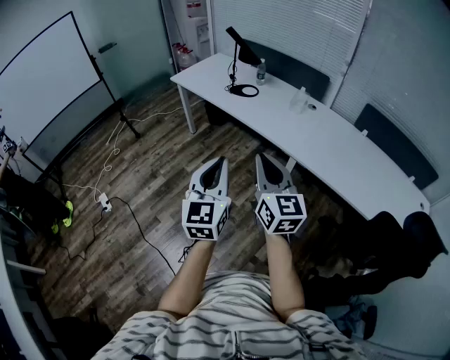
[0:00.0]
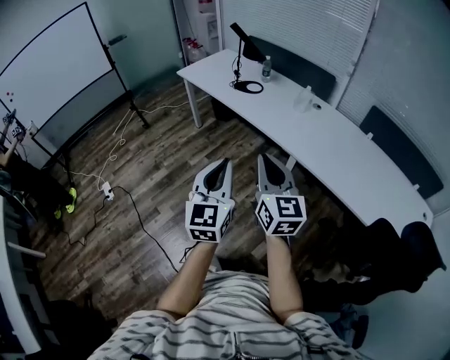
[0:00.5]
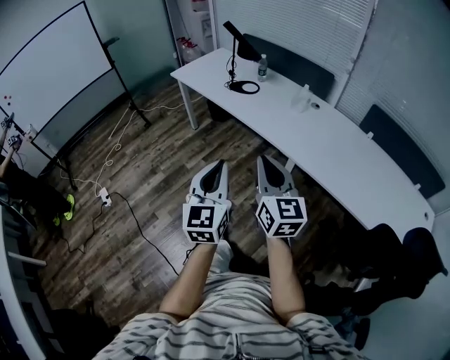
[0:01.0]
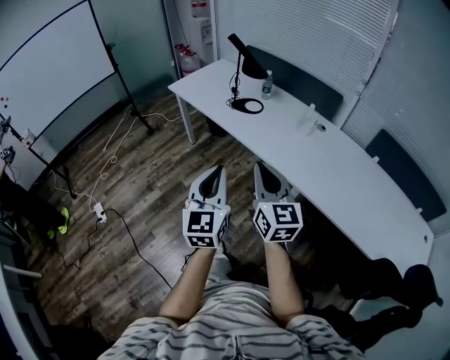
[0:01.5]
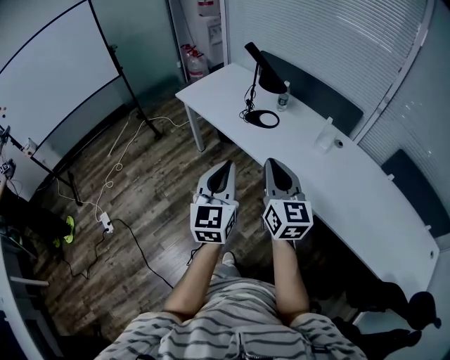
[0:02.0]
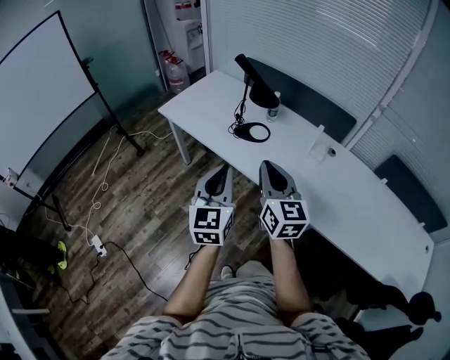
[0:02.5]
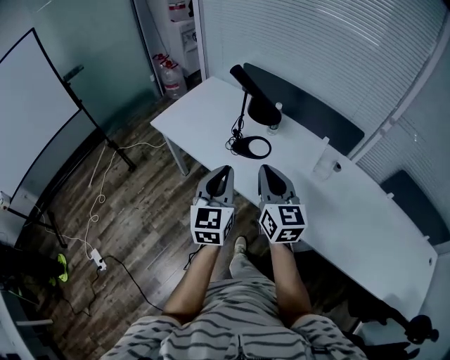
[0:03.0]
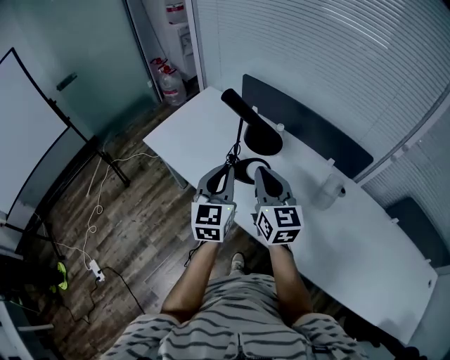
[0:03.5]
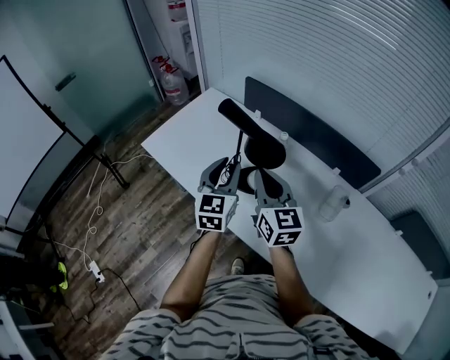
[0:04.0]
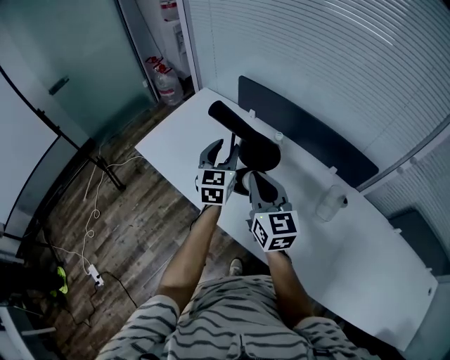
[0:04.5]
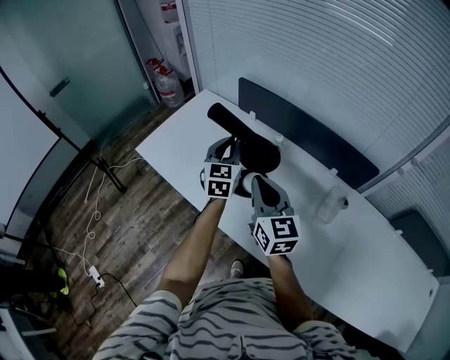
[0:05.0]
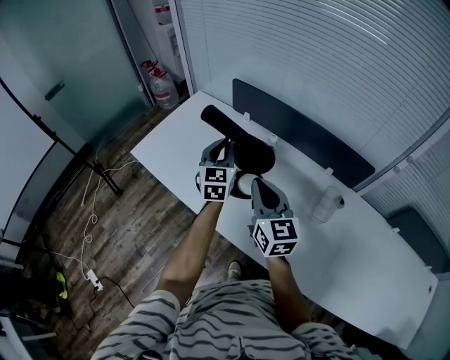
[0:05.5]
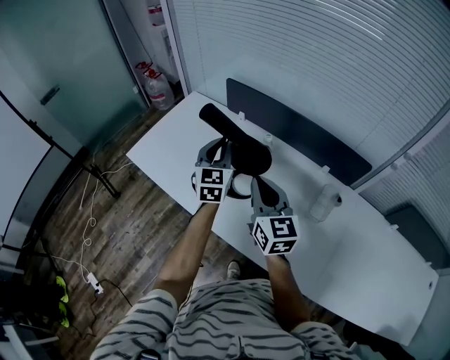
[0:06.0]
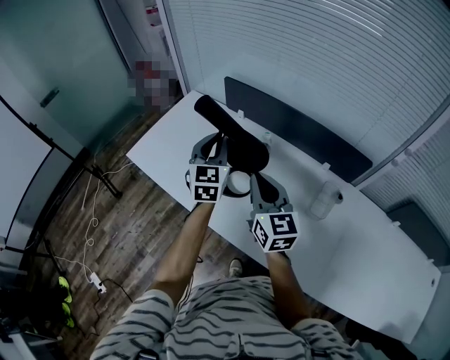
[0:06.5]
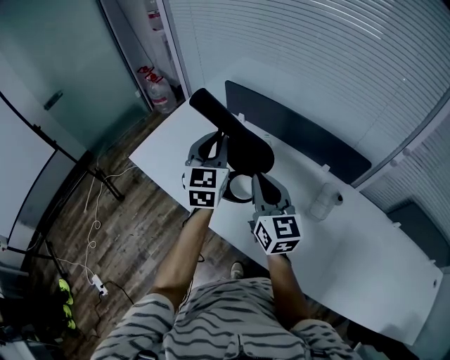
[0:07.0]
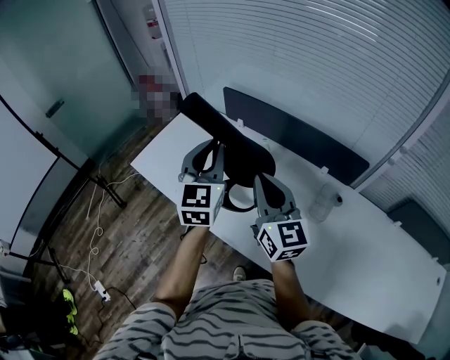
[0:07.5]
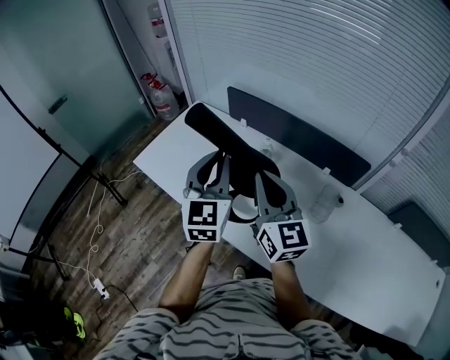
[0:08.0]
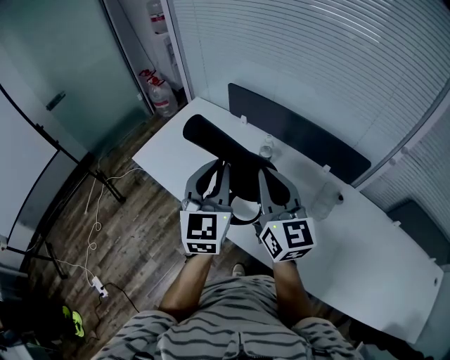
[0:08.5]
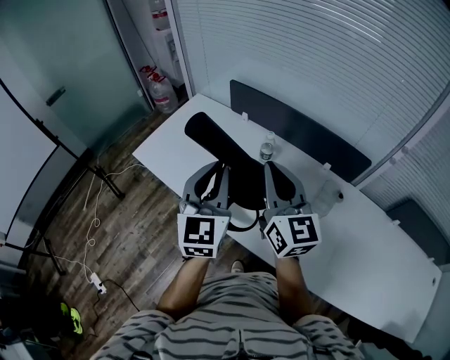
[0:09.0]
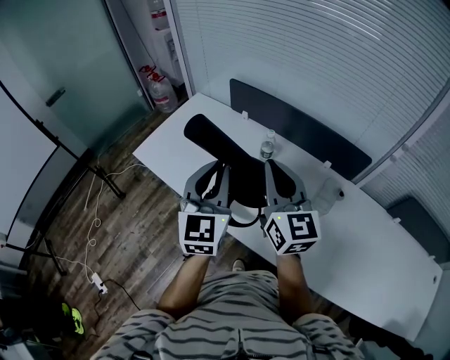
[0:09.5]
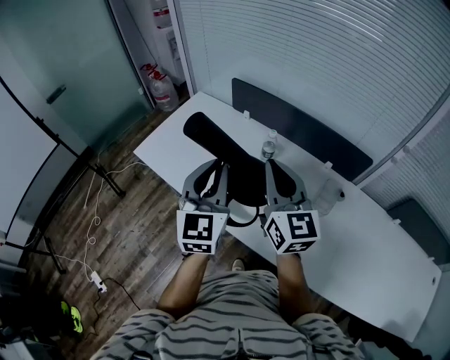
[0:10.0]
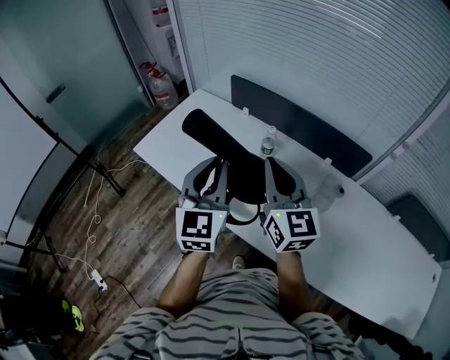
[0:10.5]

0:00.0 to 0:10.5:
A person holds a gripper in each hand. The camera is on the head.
0:00.0 to 0:02.0: Both grippers move forward, about 30 cm.
0:02.0 to 0:04.0: Both grippers are carried forward, about 50 cm. The left gripper opens up.
0:04.0 to 0:06.5: The left gripper moves forward, approximately 10 cm.
0:06.5 to 0:08.5: The left gripper shifts roughly 15 cm backward and upward; the right gripper shifts approximately 10 cm upward.
0:08.5 to 0:10.5: There are only small adjustments of the grippers.

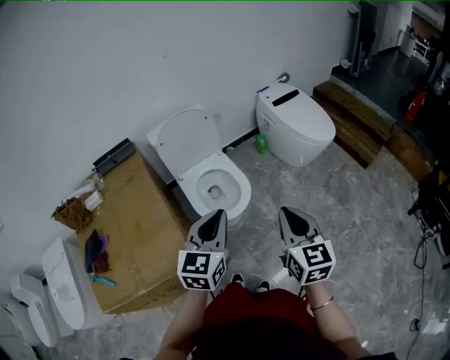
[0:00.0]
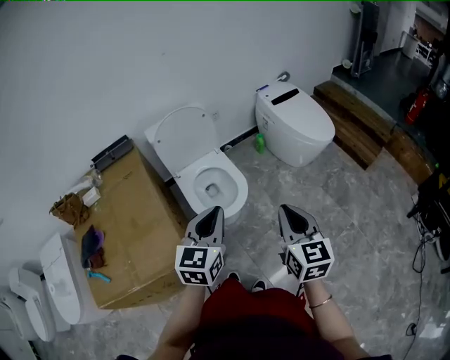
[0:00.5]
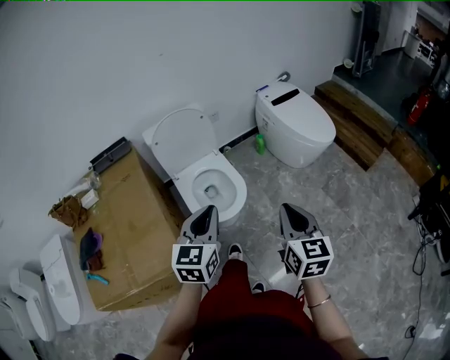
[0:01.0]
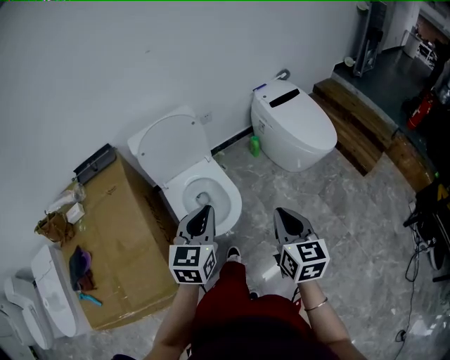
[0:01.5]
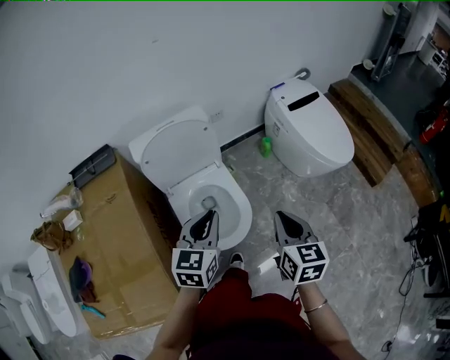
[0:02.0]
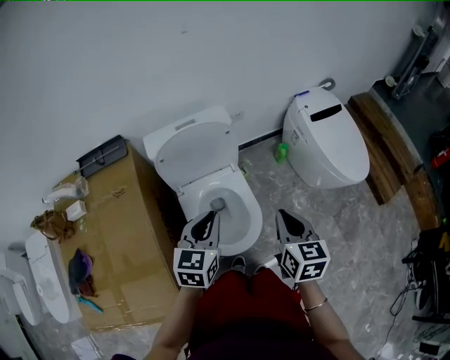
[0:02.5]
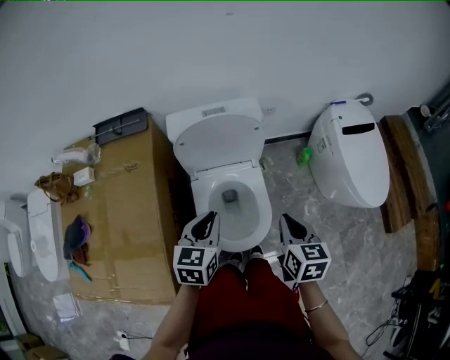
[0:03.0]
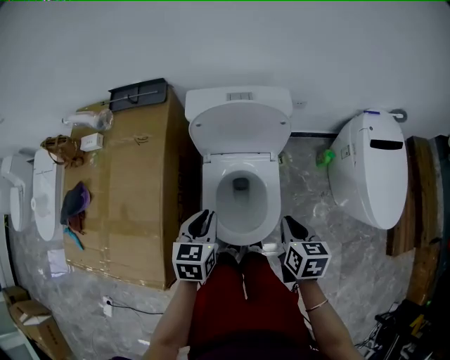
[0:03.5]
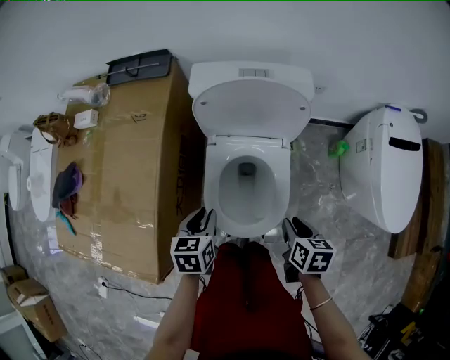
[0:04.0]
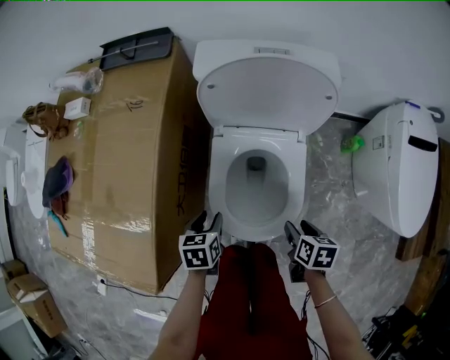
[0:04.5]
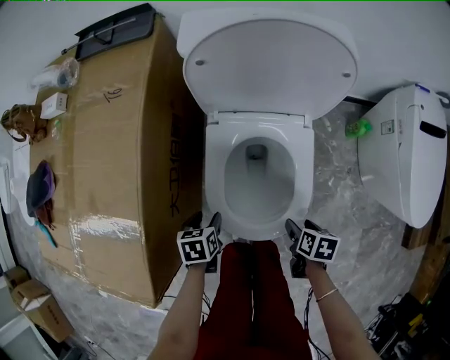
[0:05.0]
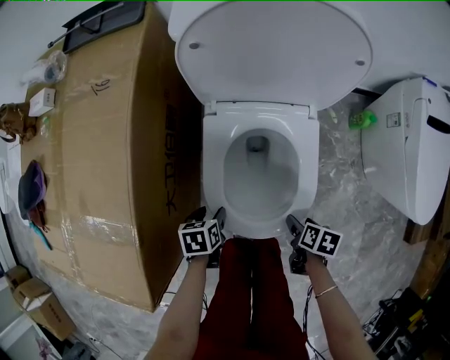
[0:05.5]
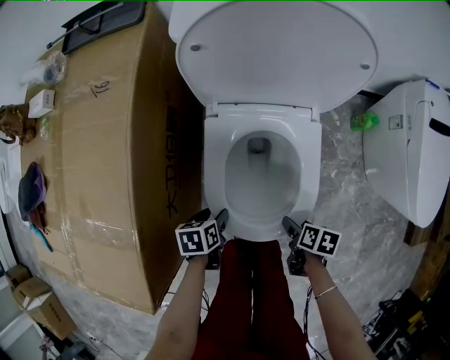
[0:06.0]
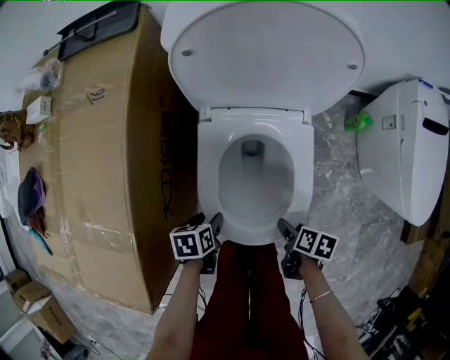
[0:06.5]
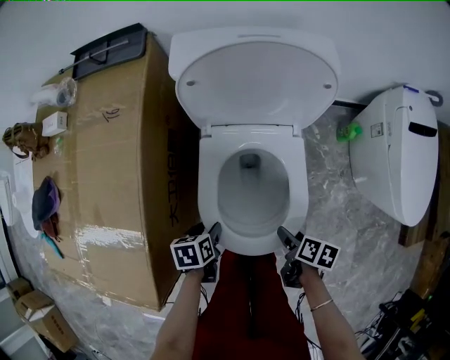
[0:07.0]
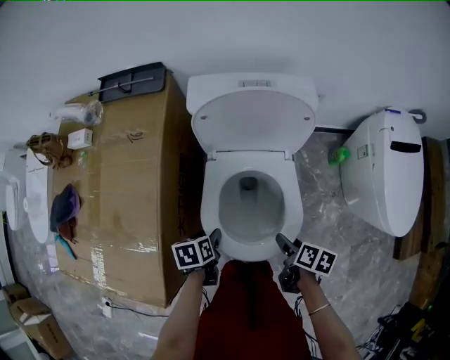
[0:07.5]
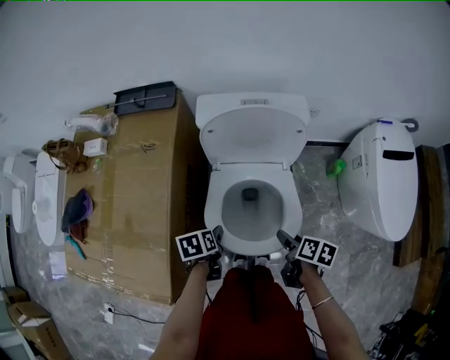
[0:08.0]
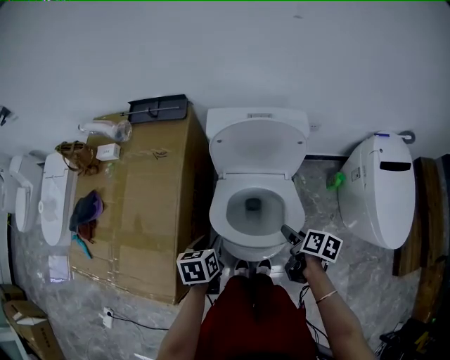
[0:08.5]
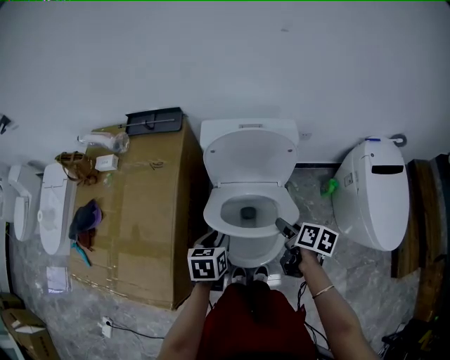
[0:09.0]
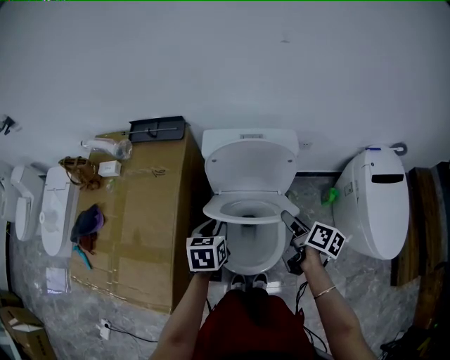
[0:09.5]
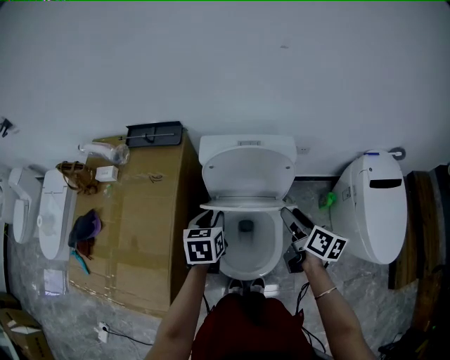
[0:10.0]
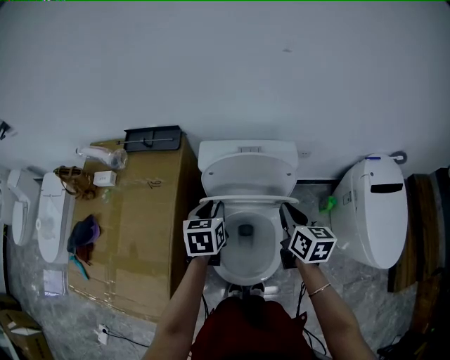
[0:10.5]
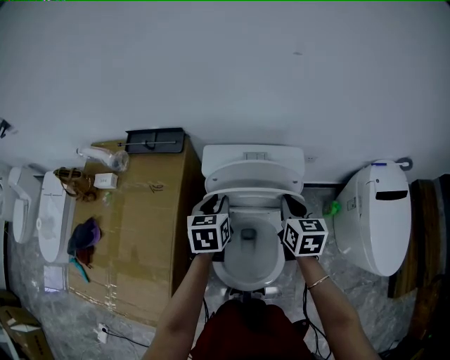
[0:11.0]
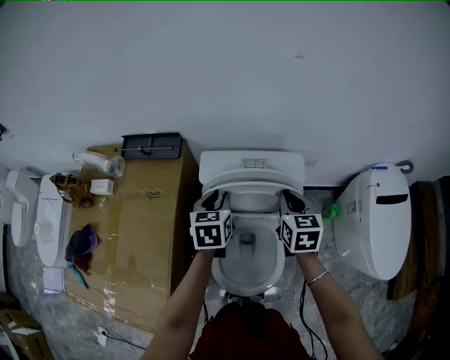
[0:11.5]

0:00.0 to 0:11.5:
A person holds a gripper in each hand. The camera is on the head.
0:00.0 to 0:02.0: Both grippers move forward, roughly 25 cm.
0:02.0 to 0:04.0: Both grippers move downward, roughly 20 cm. The left gripper turns by some 50 degrees; the right gripper swivels about 40 degrees.
0:04.0 to 0:06.0: The grippers both shift downward by approximately 25 cm. The right gripper turns by about 30 degrees, and opens its fingers; the left gripper turns by approximately 30 degrees, and opens its fingers.
0:06.0 to 0:07.5: The grippers both shift upward by roughly 15 cm.
0:07.5 to 0:09.5: The two grippers go roughly 20 cm upward and forward. The left gripper rotates approximately 30 degrees, and closes; the right gripper changes its angle by some 30 degrees.
0:09.5 to 0:11.5: Both grippers move forward, about 20 cm. The right gripper rotates around the line of its fingers by roughly 50 degrees, counterclockwise from behind, and closes.

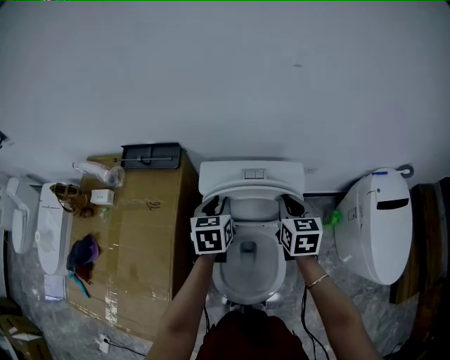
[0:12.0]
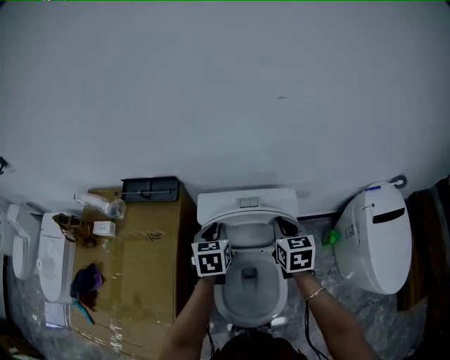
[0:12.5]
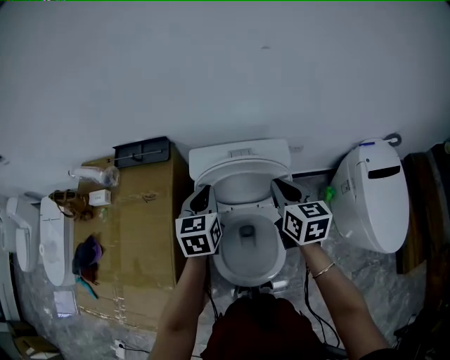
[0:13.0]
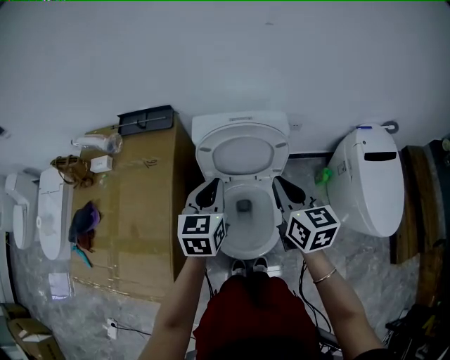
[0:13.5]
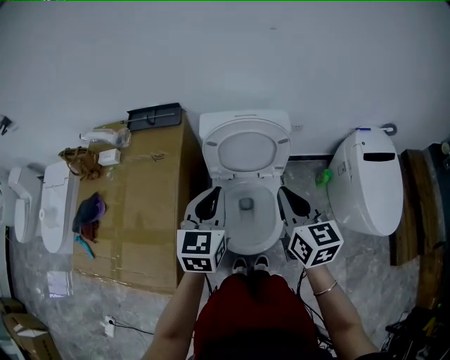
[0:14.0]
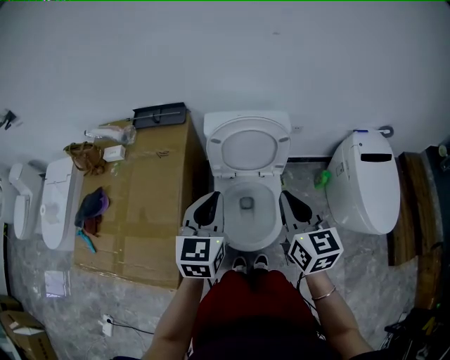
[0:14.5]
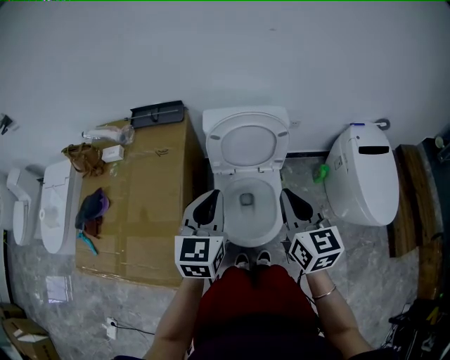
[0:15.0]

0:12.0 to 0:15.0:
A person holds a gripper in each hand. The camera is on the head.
0:12.0 to 0:13.5: Both grippers travel together backward and upward, some 20 cm. The left gripper closes up.
0:13.5 to 0:15.0: Both grippers move backward and upward, some 15 cm.

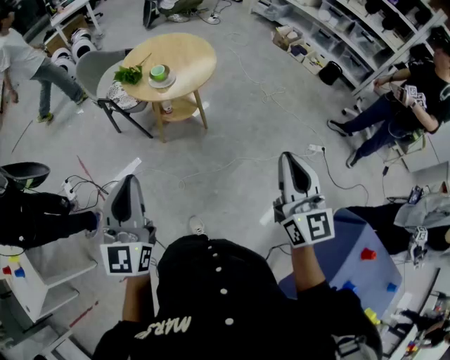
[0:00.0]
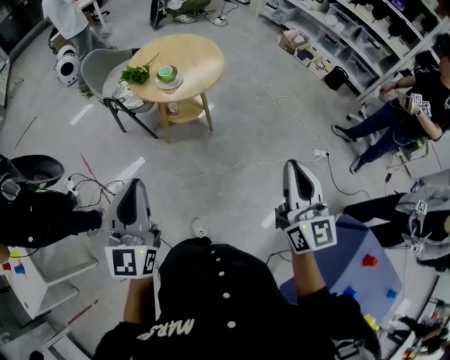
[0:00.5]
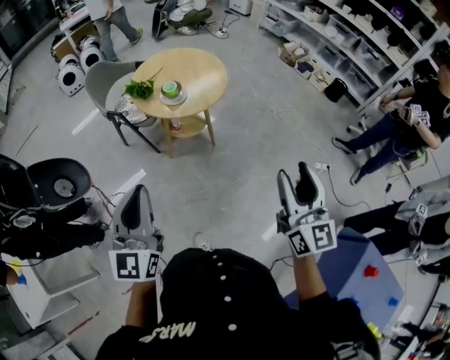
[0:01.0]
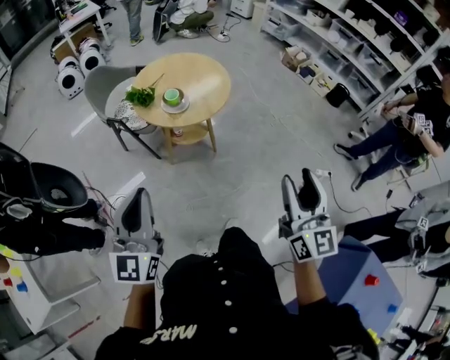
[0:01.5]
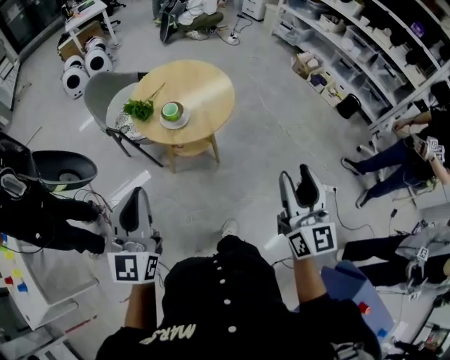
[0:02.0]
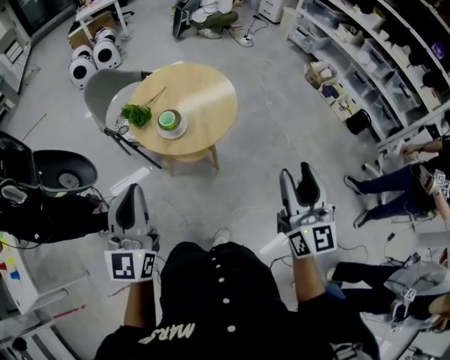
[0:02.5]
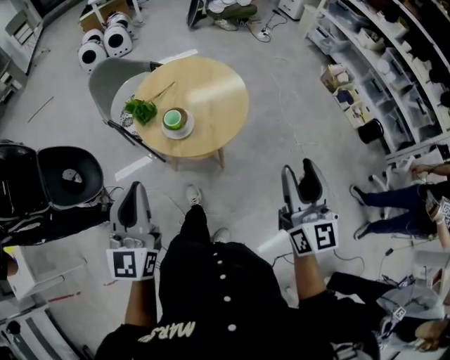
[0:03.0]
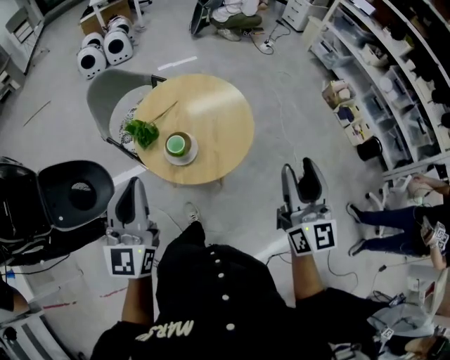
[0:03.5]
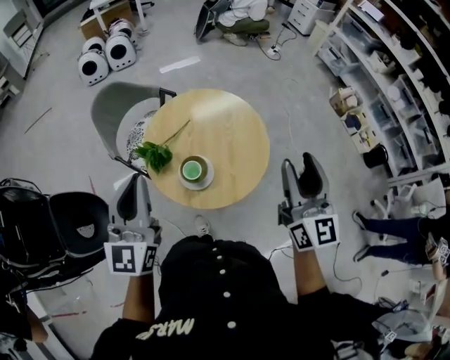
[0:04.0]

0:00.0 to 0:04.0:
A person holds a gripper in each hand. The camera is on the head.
0:00.0 to 0:02.0: The two grippers go about 20 cm forward. The right gripper opens its fingers.
0:02.0 to 0:04.0: The pair of grippers is taken forward, about 40 cm.
